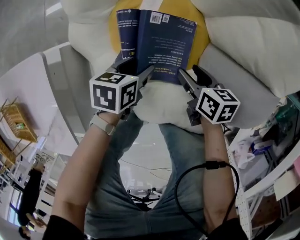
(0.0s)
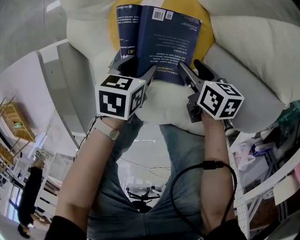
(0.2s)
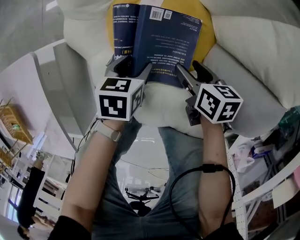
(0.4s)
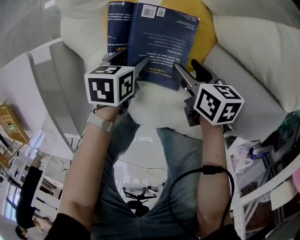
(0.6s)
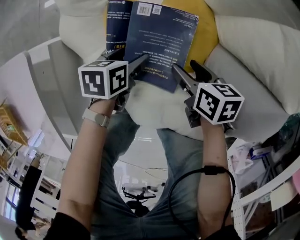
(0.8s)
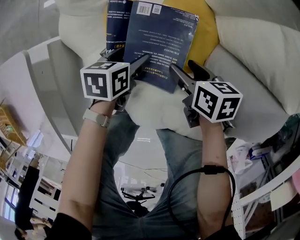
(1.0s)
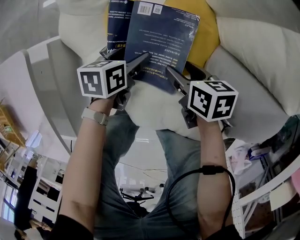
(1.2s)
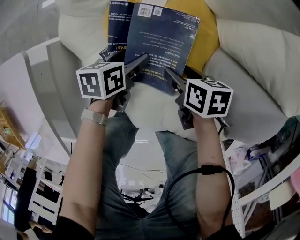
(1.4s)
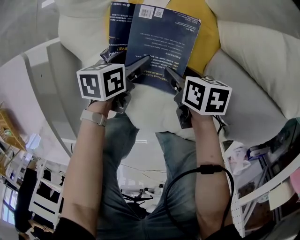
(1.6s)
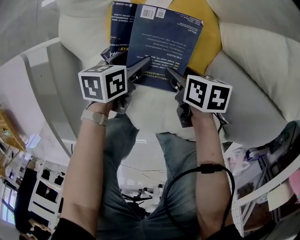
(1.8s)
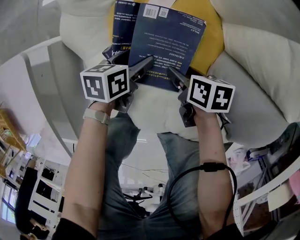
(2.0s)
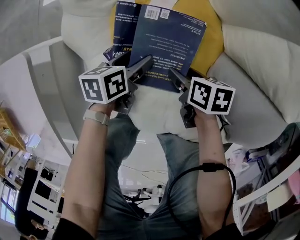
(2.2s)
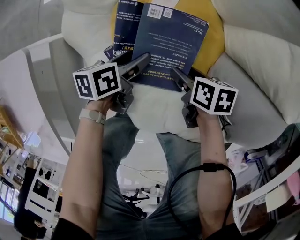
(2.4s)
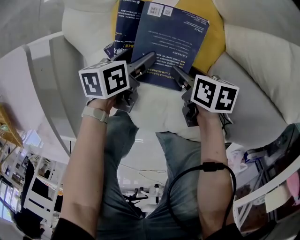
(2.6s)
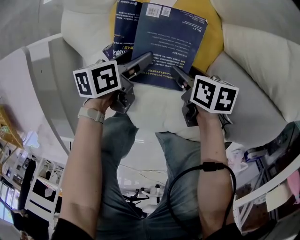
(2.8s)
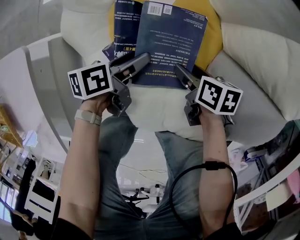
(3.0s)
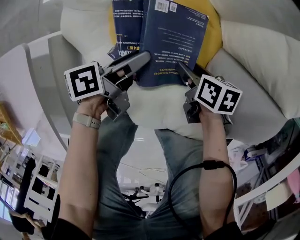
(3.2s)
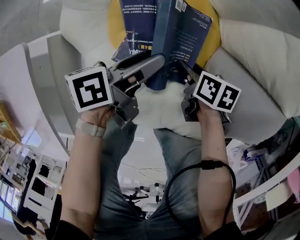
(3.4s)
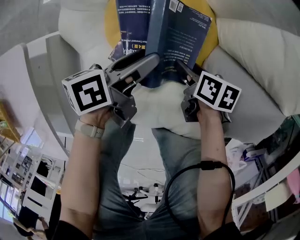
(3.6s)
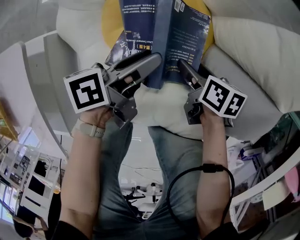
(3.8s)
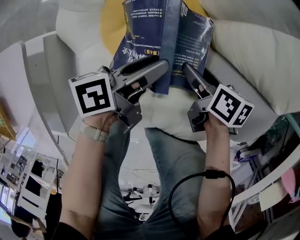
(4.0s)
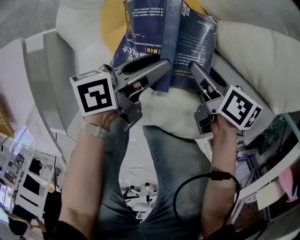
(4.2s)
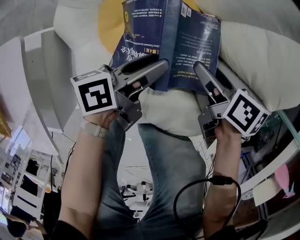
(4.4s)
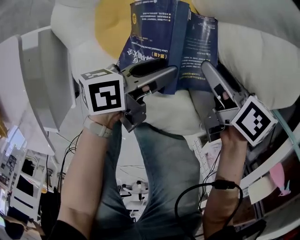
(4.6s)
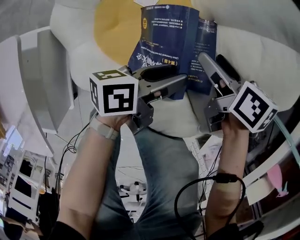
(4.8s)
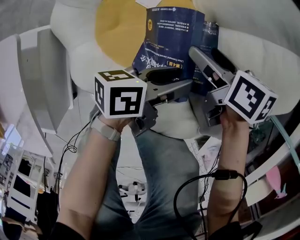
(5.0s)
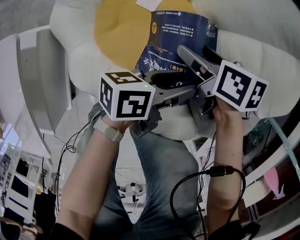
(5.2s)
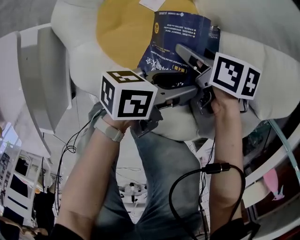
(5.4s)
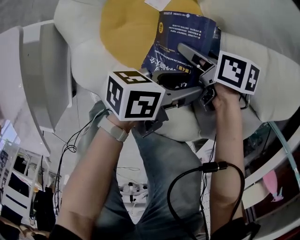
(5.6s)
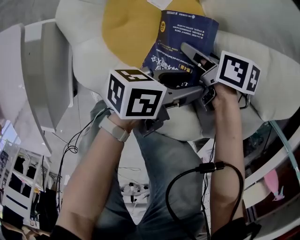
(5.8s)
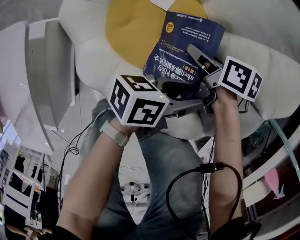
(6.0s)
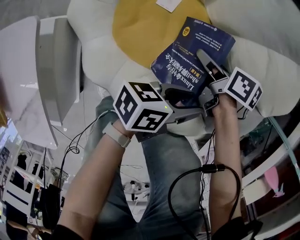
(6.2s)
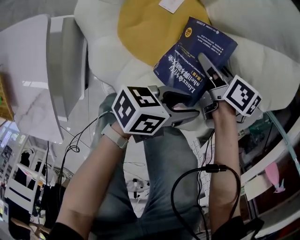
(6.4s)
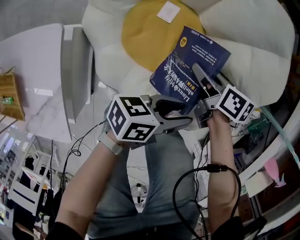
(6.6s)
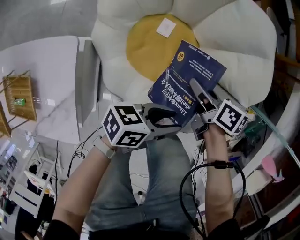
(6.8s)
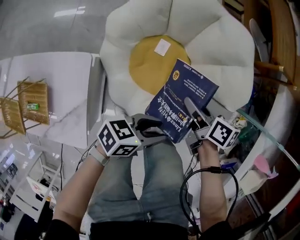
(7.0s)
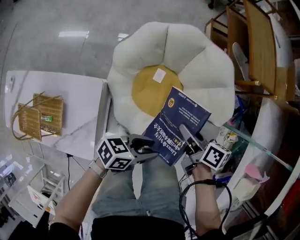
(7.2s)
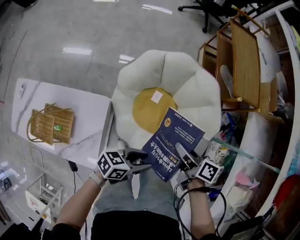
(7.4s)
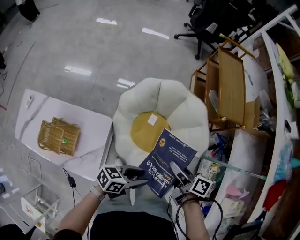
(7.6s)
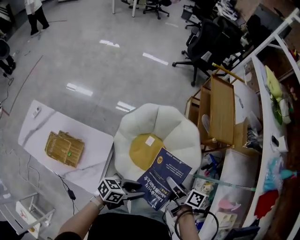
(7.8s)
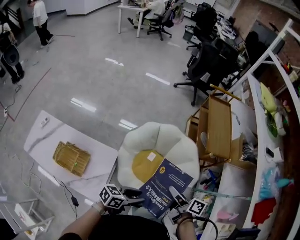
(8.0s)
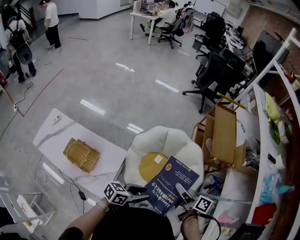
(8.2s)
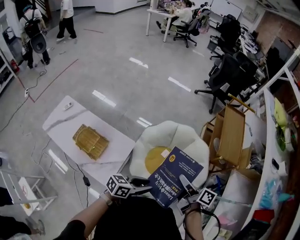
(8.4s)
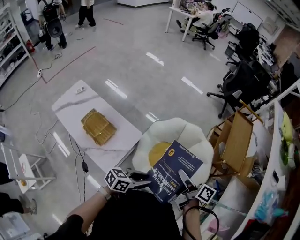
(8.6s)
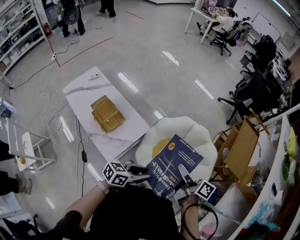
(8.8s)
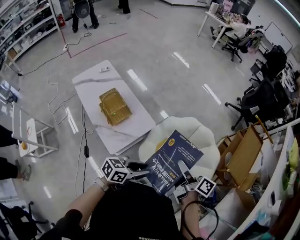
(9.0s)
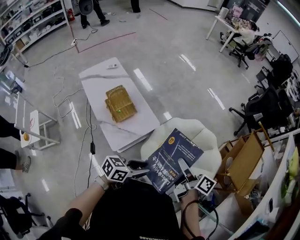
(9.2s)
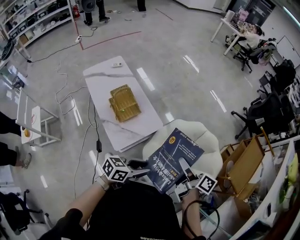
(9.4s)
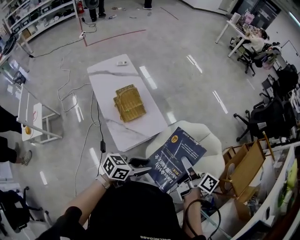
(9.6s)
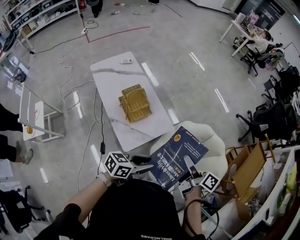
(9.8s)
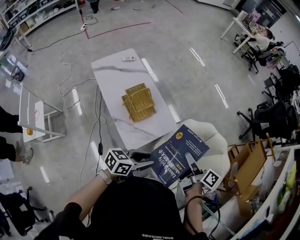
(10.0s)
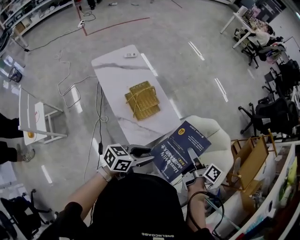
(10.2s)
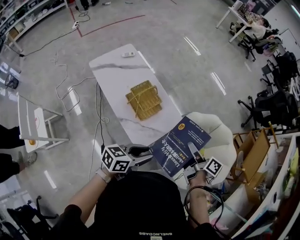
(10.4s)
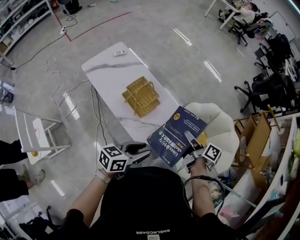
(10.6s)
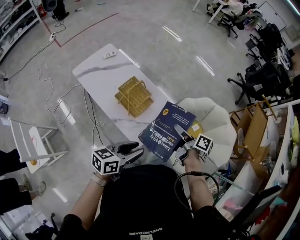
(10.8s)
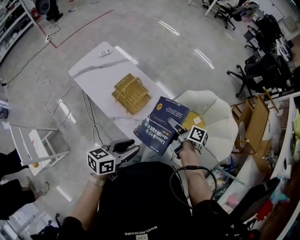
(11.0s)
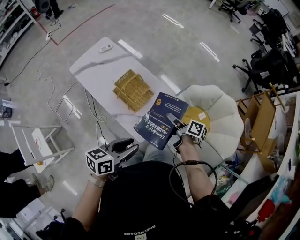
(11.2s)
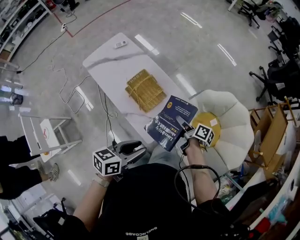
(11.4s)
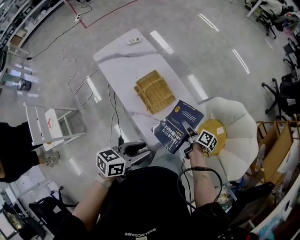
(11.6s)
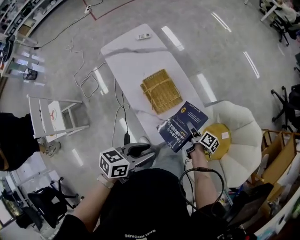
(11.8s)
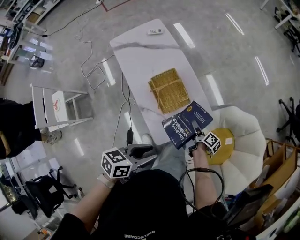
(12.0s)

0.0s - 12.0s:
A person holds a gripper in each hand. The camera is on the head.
0.0s - 1.6s: The left gripper heads downward, covering approximately 10 cm.
1.6s - 3.0s: The left gripper changes its angle by roughly 20 degrees.
3.0s - 4.4s: The left gripper travels upward by some 10 cm.
4.4s - 6.0s: The left gripper ends up roughly 10 cm from where it was, and changes its angle by roughly 20 degrees.
6.0s - 7.6s: The left gripper moves up and down over approximately 10 cm, changing direction 2 times.
7.6s - 9.0s: The left gripper goes some 15 cm upward, and rotates roughly 40 degrees.
9.0s - 10.4s: The left gripper shifts by roughly 30 cm.
10.4s - 12.0s: The left gripper heads downward, covering some 10 cm, and changes its angle by about 20 degrees.

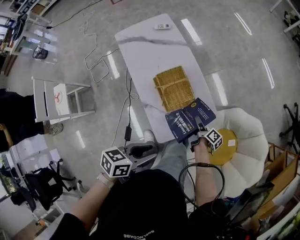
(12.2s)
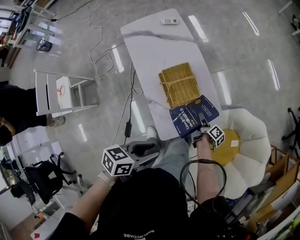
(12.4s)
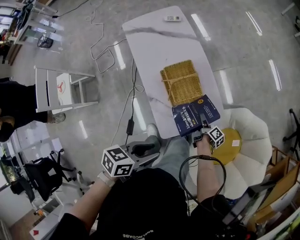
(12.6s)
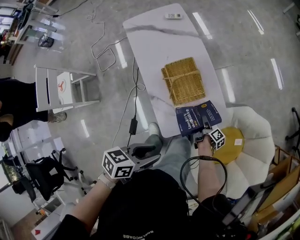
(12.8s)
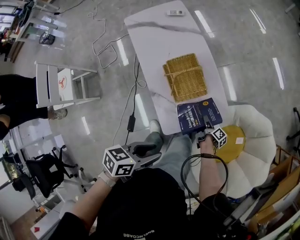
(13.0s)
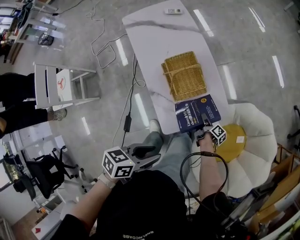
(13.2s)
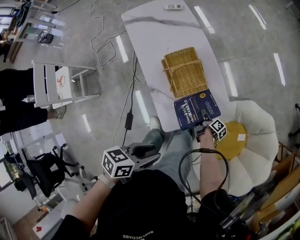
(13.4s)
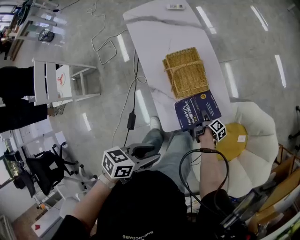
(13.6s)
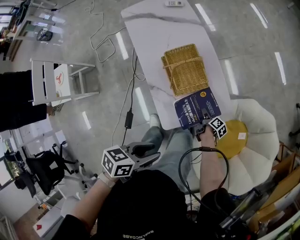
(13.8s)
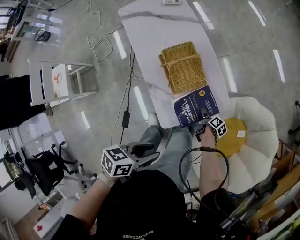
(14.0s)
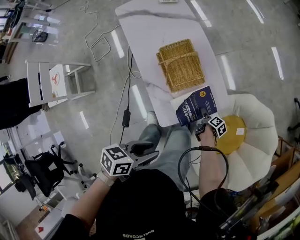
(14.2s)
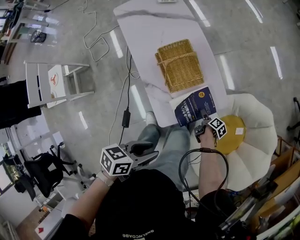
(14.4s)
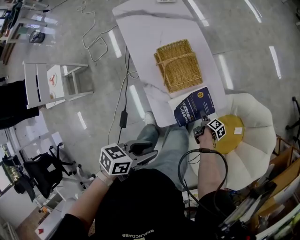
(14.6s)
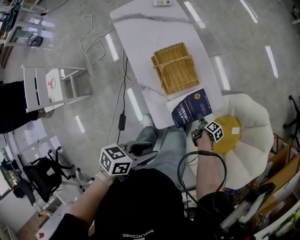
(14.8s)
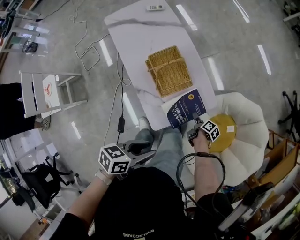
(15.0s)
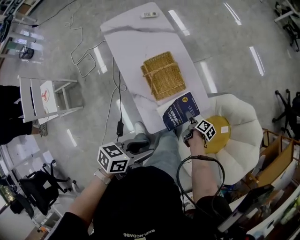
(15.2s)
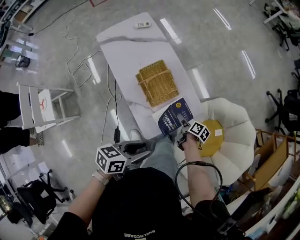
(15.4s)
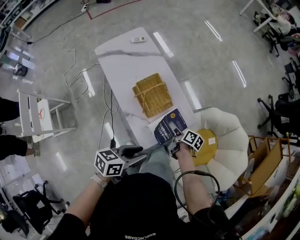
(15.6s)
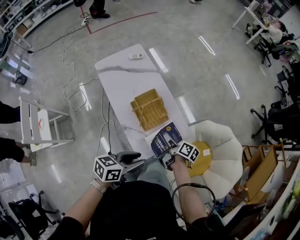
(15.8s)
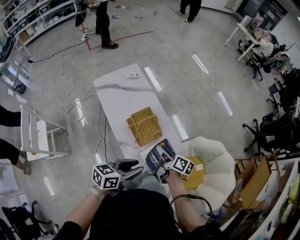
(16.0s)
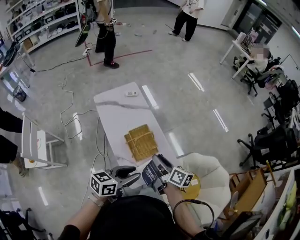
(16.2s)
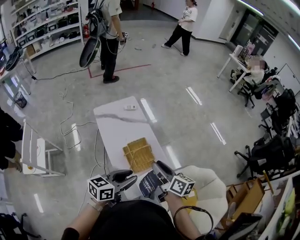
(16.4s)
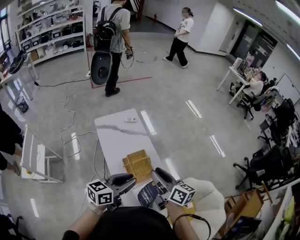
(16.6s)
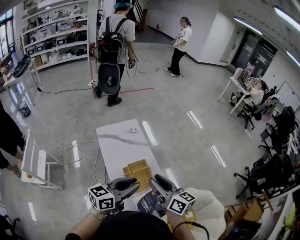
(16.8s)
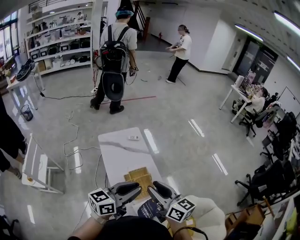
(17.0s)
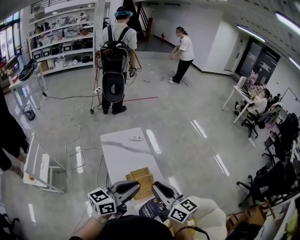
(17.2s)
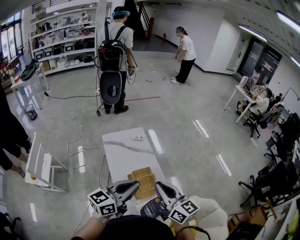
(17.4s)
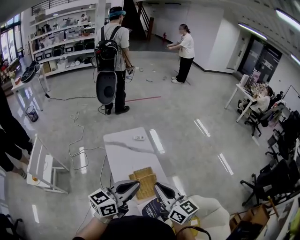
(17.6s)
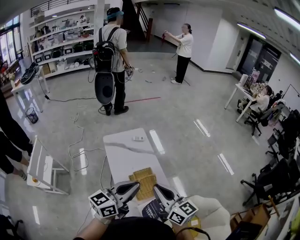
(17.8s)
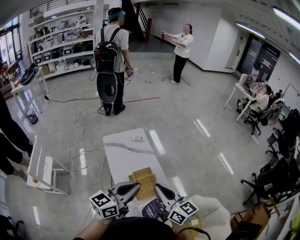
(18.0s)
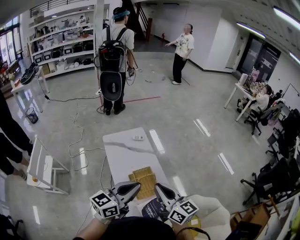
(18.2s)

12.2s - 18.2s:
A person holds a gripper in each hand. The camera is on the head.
12.2s - 13.8s: The left gripper moves roughly 10 cm.
15.2s - 16.6s: The left gripper ends up about 30 cm from where it was, and swivels roughly 40 degrees.
16.6s - 18.2s: The left gripper heads upward, covering about 5 cm.

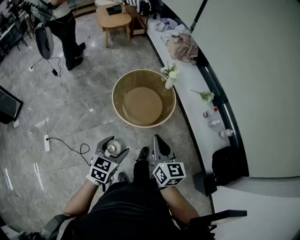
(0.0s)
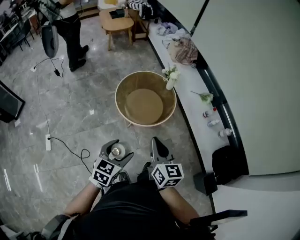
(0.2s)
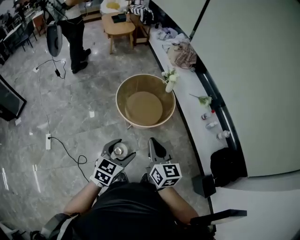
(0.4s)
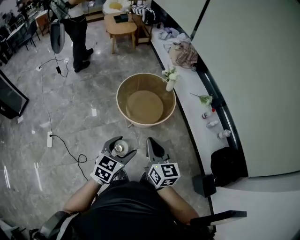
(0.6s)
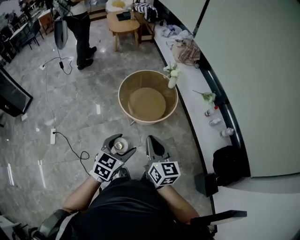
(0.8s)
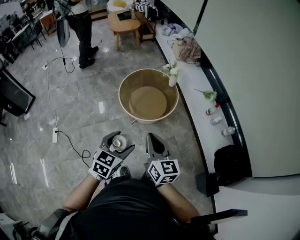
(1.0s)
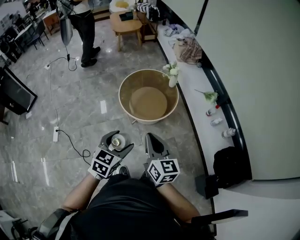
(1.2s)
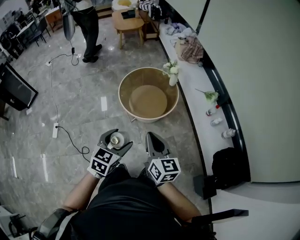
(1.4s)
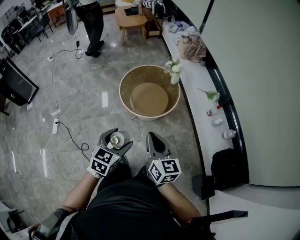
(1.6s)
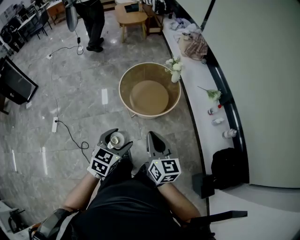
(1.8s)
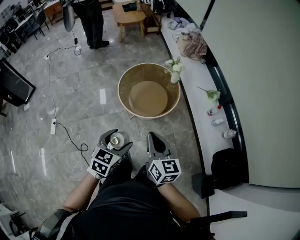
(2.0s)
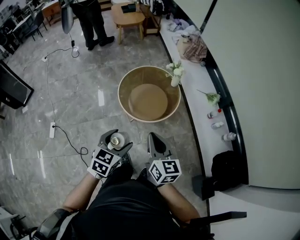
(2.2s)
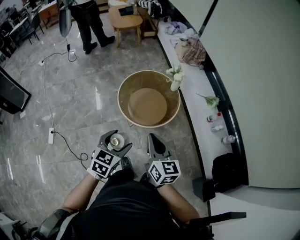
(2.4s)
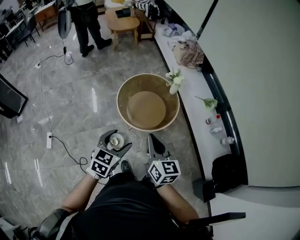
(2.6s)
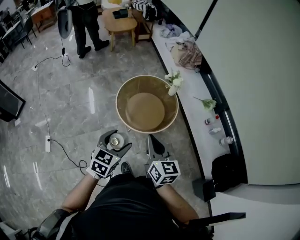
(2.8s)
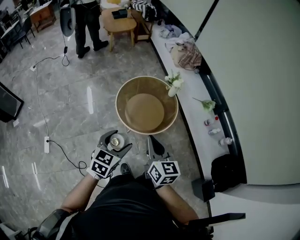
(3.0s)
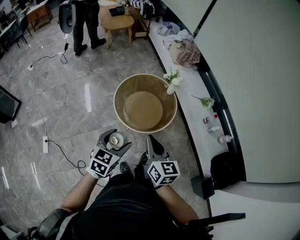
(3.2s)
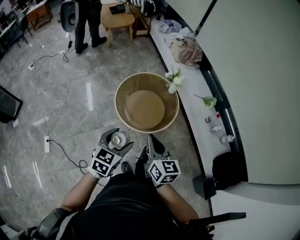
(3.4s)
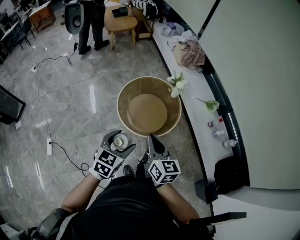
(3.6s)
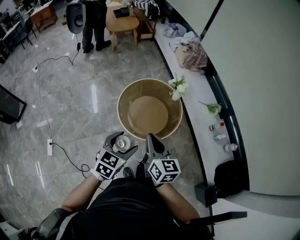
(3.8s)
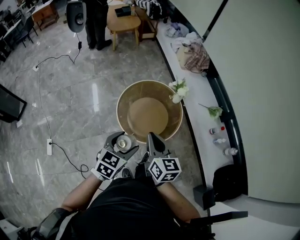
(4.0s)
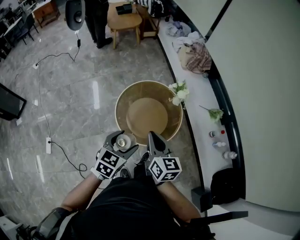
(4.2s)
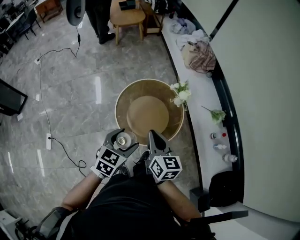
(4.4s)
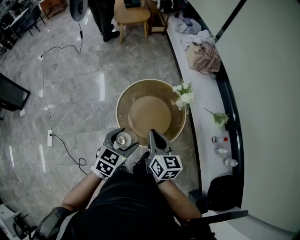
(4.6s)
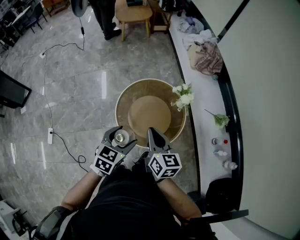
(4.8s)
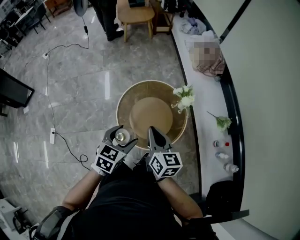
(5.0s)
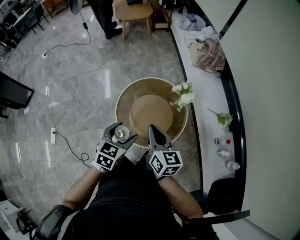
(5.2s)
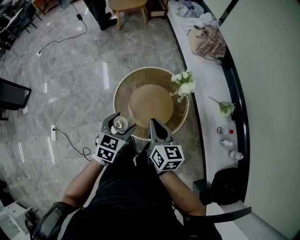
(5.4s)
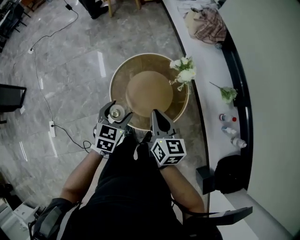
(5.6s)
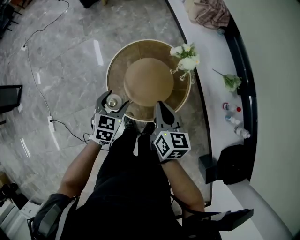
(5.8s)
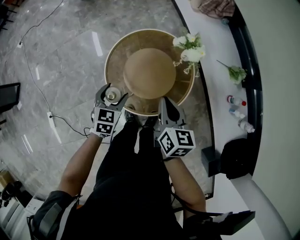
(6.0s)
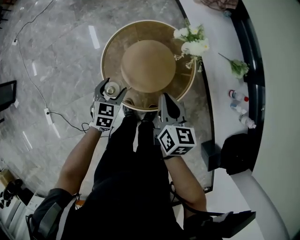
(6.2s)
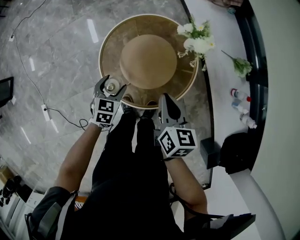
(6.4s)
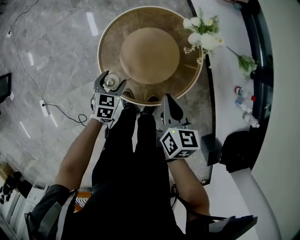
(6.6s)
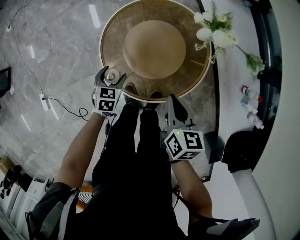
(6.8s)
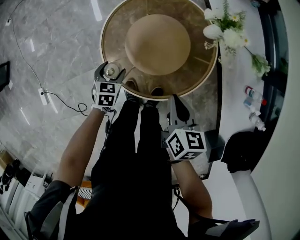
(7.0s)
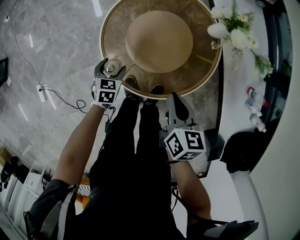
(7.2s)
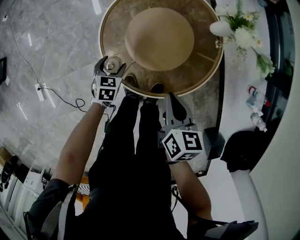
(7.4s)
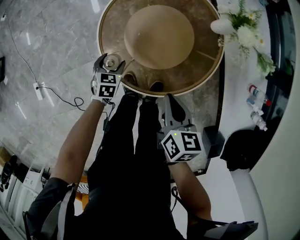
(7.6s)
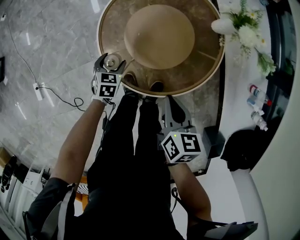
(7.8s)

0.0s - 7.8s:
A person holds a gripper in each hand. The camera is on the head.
0.0s - 1.6s: The right gripper goes about 10 cm backward and to the right. The left gripper travels to the right and backward by some 15 cm.
1.6s - 3.2s: The grippers both shift forward and to the left by some 20 cm.
3.2s - 4.6s: Both grippers travel together forward, some 20 cm.
4.6s - 6.2s: The right gripper moves downward, forward and to the right, about 20 cm; the left gripper moves downward and forward, approximately 30 cm.
6.2s - 7.8s: The left gripper is displaced downward by about 25 cm. Meanwhile the right gripper heads downward and backward, covering roughly 15 cm.
